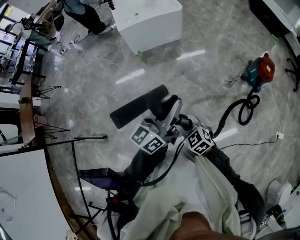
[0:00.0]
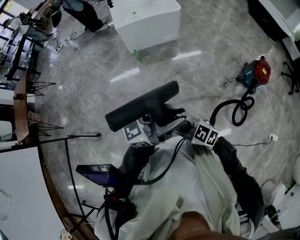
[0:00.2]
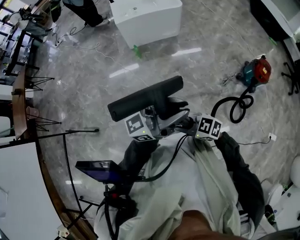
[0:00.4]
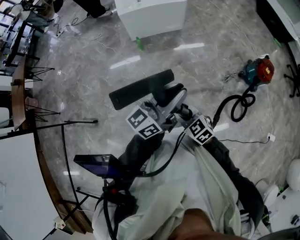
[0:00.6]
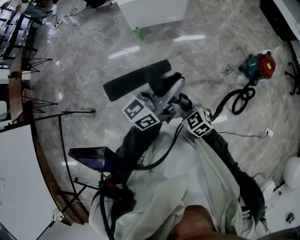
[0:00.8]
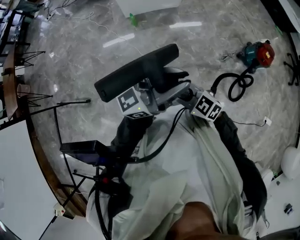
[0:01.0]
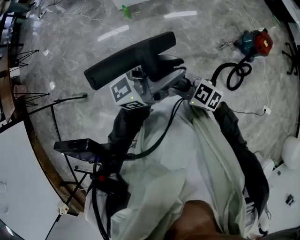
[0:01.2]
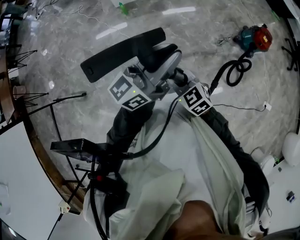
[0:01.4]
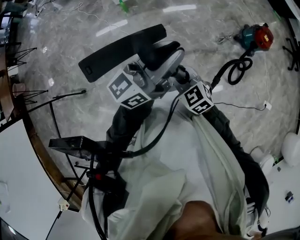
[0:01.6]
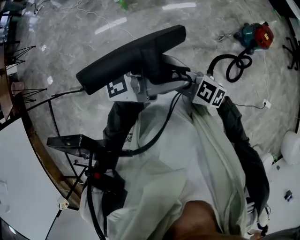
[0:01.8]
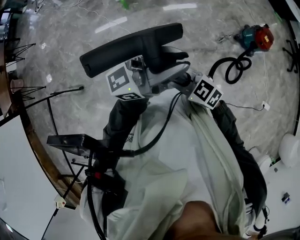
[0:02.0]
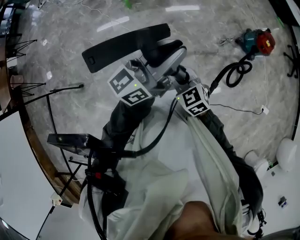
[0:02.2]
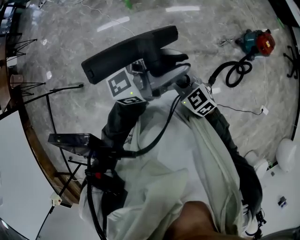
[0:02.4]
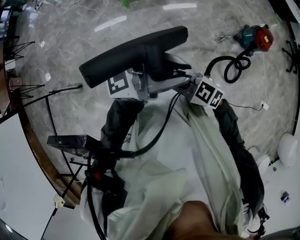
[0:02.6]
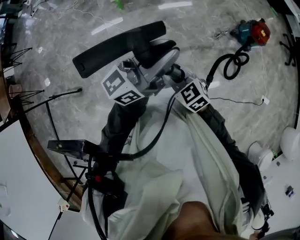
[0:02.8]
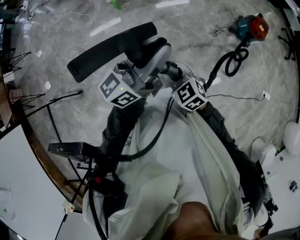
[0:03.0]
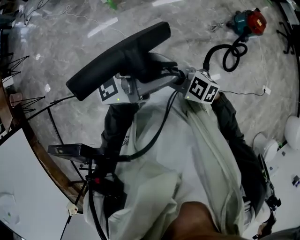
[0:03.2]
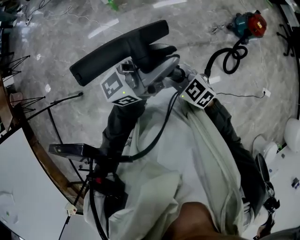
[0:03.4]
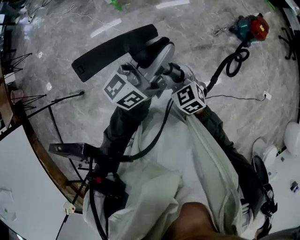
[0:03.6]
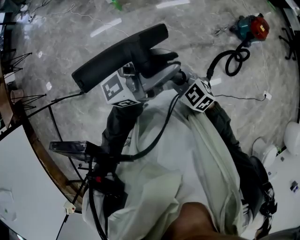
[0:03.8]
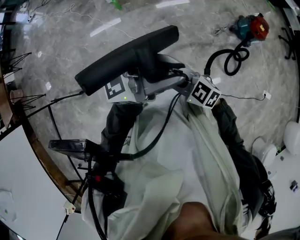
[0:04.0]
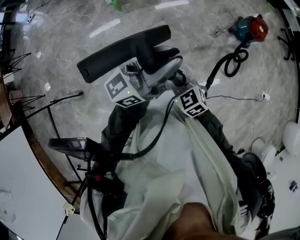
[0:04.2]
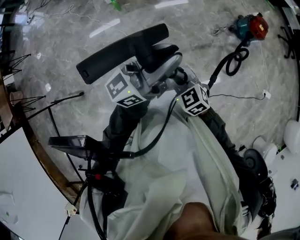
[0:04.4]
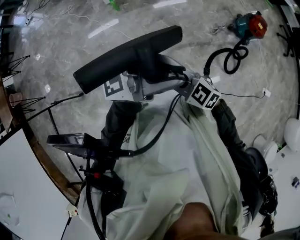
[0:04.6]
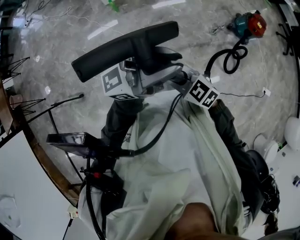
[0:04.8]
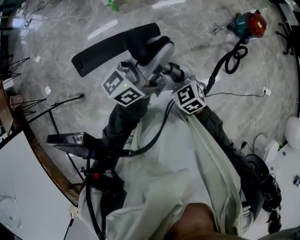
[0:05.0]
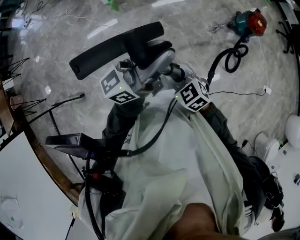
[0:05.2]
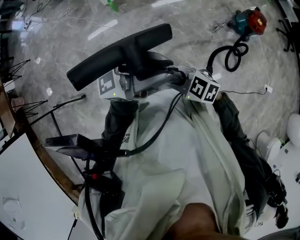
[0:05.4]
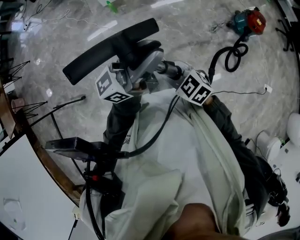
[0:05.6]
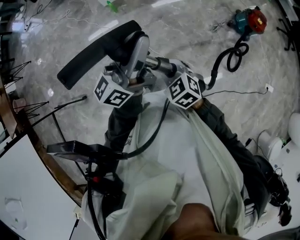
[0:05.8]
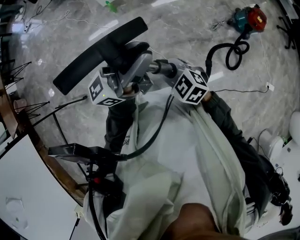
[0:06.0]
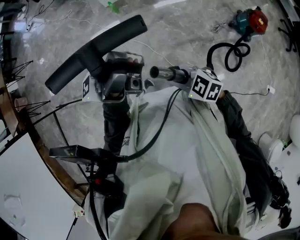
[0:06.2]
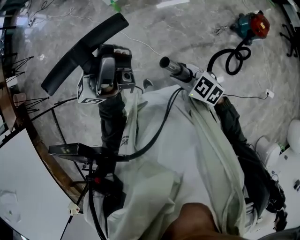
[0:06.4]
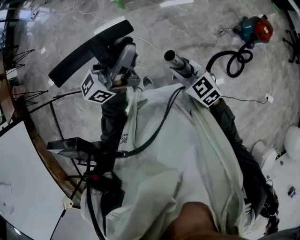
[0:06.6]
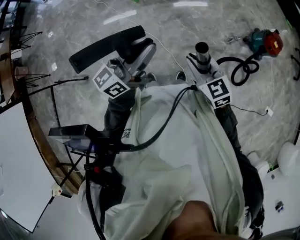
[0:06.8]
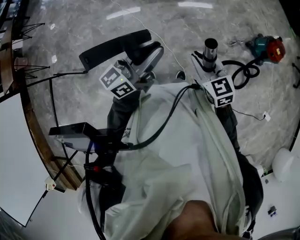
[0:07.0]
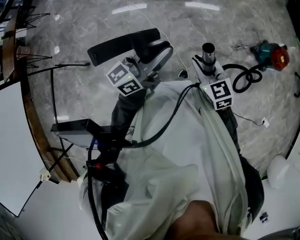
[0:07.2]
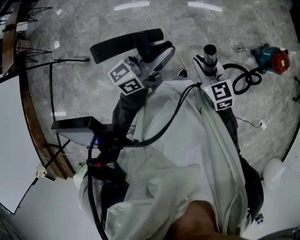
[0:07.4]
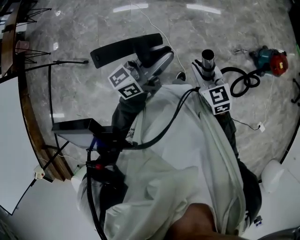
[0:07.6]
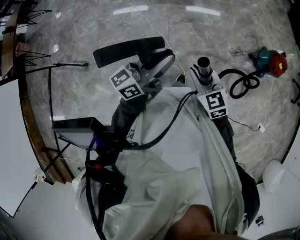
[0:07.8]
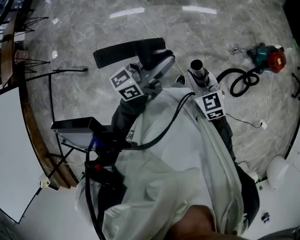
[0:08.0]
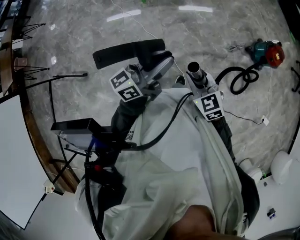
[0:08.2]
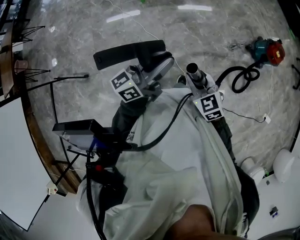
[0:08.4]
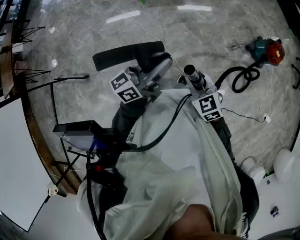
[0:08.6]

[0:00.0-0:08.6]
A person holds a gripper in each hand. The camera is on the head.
0:04.4 to 0:05.8: The left gripper changes place by approximately 10 cm.
0:05.8 to 0:07.2: The right gripper shifts by roughly 10 cm; the left gripper goes approximately 10 cm downward.
0:07.2 to 0:08.6: The right gripper ends up some 5 cm from where it was.

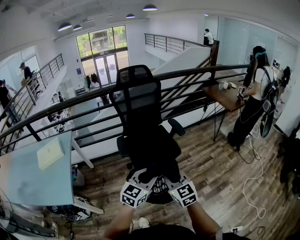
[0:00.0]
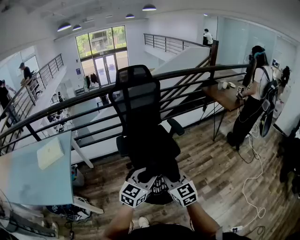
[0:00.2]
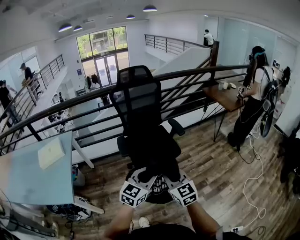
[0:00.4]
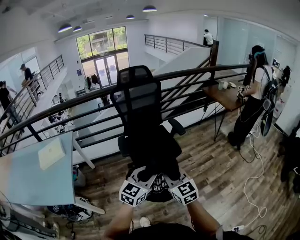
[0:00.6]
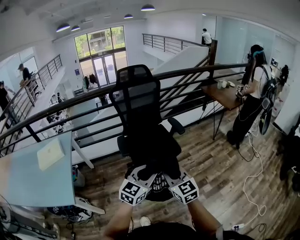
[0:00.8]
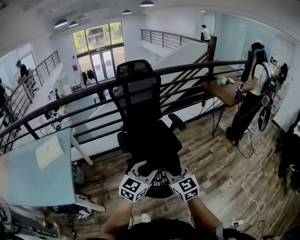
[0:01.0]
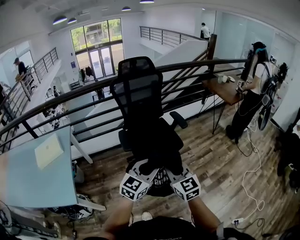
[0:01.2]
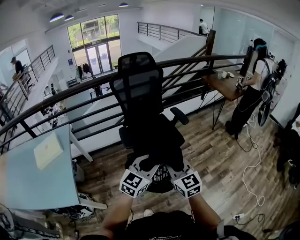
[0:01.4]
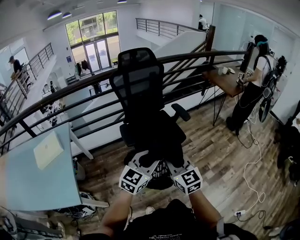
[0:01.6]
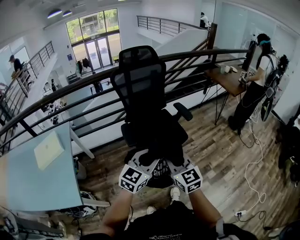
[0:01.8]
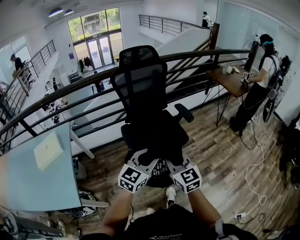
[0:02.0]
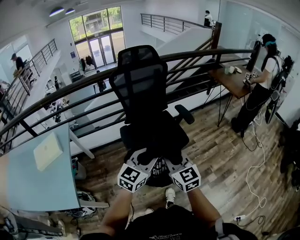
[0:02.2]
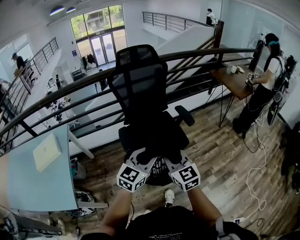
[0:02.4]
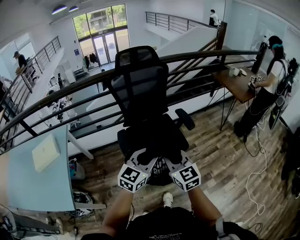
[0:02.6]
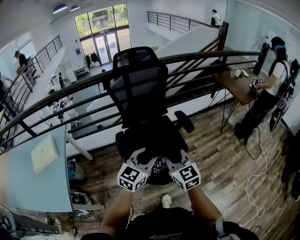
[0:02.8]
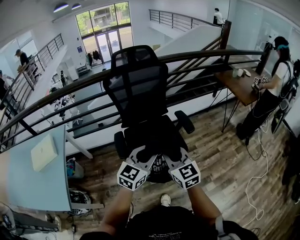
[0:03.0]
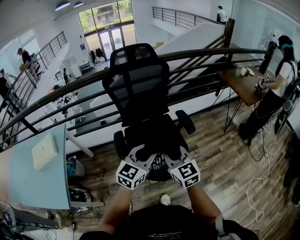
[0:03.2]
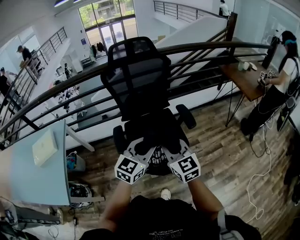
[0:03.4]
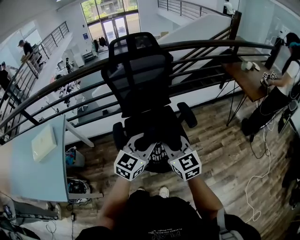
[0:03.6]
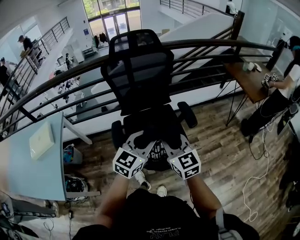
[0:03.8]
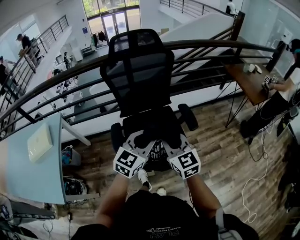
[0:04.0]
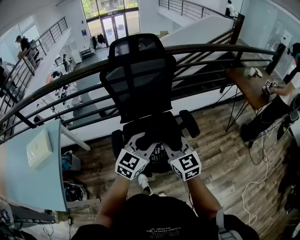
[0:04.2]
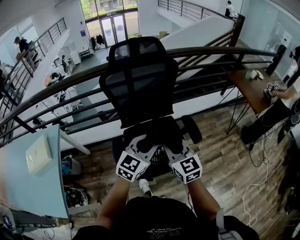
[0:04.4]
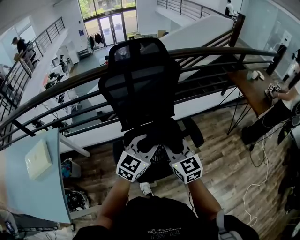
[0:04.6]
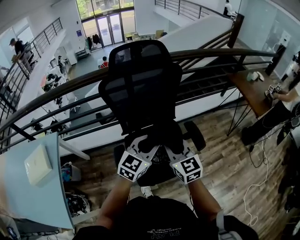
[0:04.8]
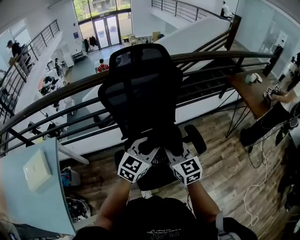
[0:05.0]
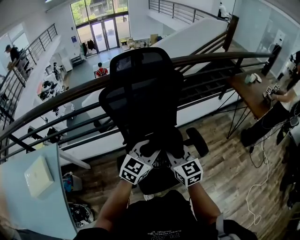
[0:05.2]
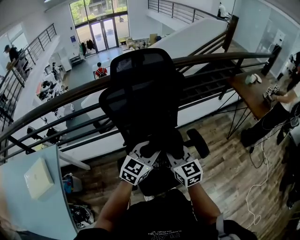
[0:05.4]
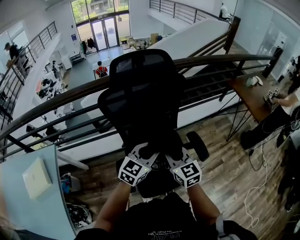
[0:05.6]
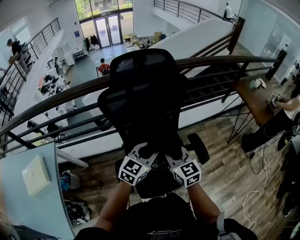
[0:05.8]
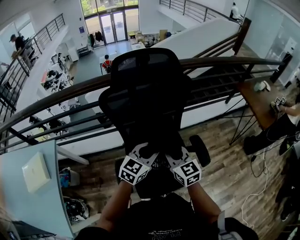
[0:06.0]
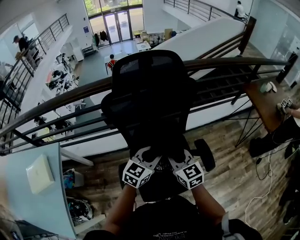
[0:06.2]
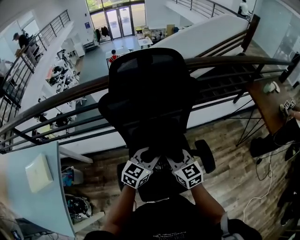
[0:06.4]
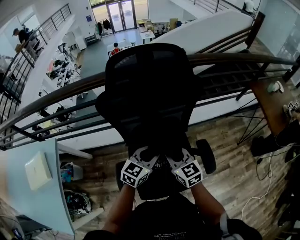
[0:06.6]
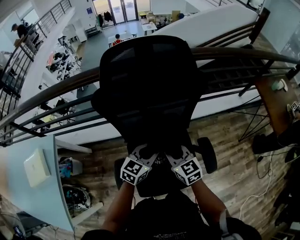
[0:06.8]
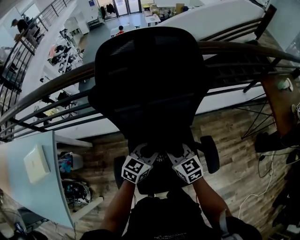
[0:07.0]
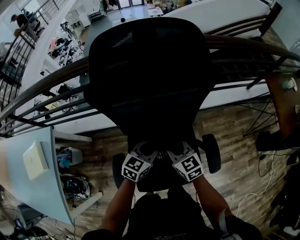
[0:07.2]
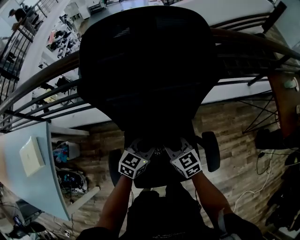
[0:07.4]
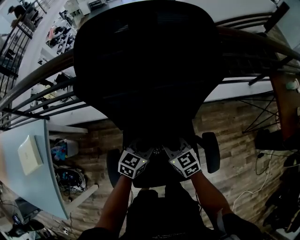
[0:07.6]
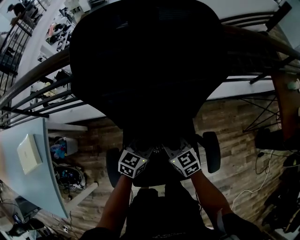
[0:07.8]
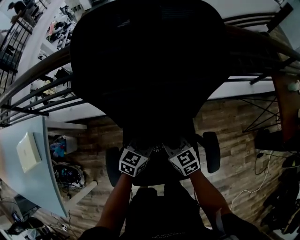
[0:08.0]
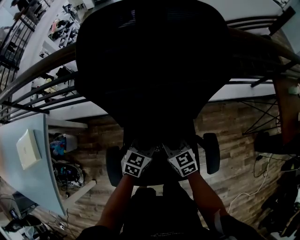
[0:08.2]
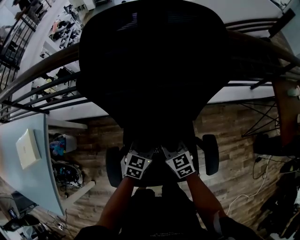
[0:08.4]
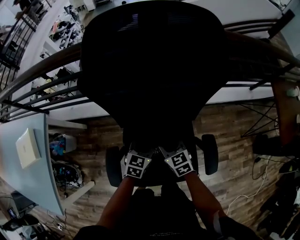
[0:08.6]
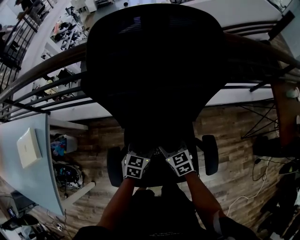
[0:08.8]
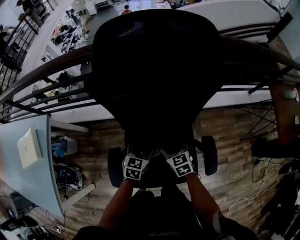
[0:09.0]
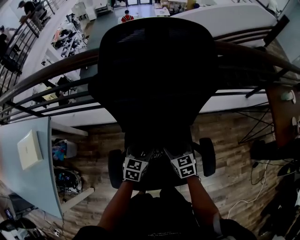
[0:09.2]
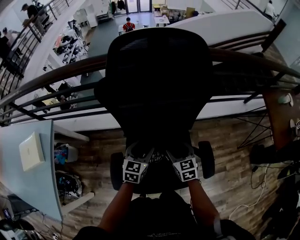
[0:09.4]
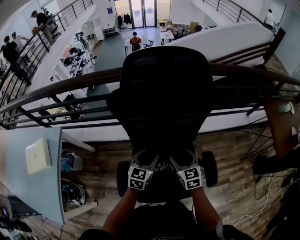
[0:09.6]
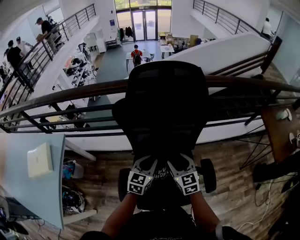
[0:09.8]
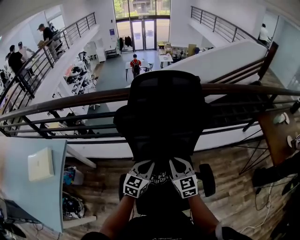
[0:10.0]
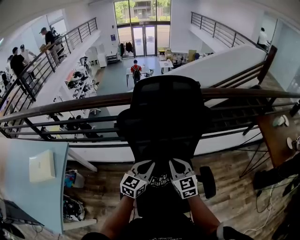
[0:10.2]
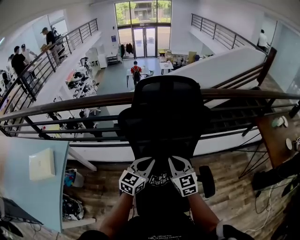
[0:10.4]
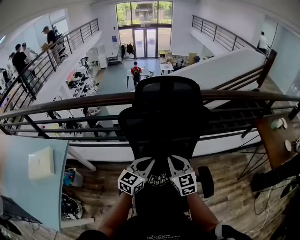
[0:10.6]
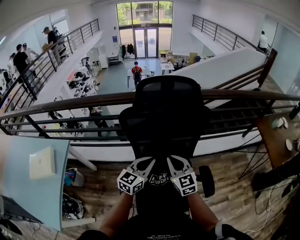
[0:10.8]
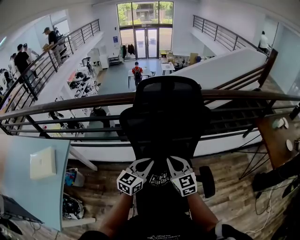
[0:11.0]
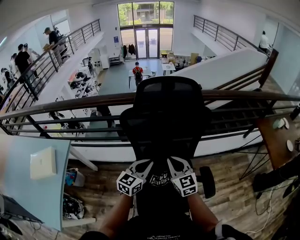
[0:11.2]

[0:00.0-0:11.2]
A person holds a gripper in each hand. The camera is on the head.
0:00.0 to 0:01.6: Both grippers move to the left, roughly 10 cm.
0:01.6 to 0:03.2: The two grippers go roughly 20 cm forward.
0:03.2 to 0:04.8: Both grippers move forward, some 20 cm.
0:04.8 to 0:06.4: The grippers both shift forward and downward by roughly 15 cm.
0:06.4 to 0:08.0: Both grippers move downward and forward, some 20 cm.
0:08.0 to 0:09.6: Both grippers move upward, approximately 5 cm. The left gripper opens up. The right gripper opens its fingers.
0:09.6 to 0:11.2: The right gripper heads upward and to the left, covering about 15 cm, and closes its fingers, while the left gripper goes roughly 10 cm upward, and closes.

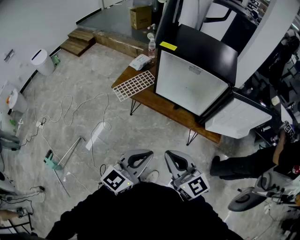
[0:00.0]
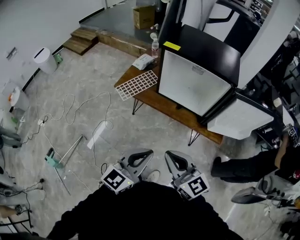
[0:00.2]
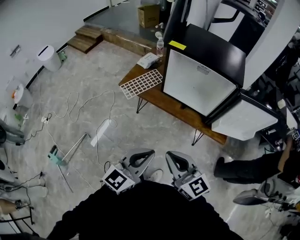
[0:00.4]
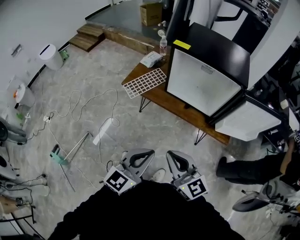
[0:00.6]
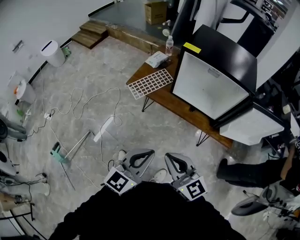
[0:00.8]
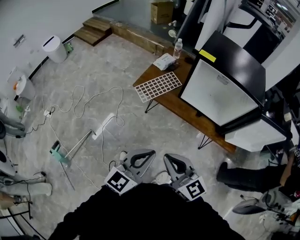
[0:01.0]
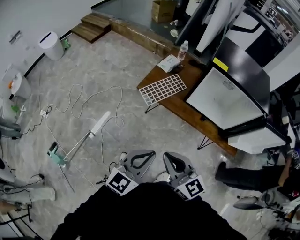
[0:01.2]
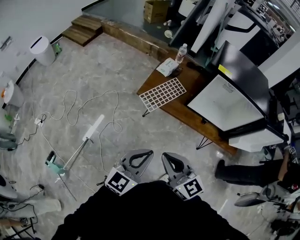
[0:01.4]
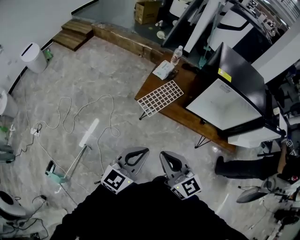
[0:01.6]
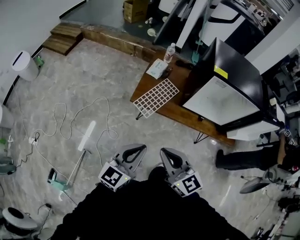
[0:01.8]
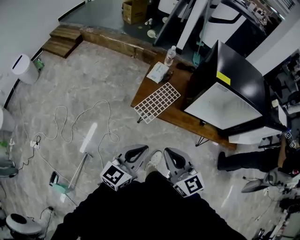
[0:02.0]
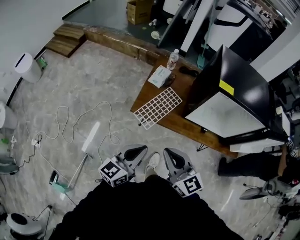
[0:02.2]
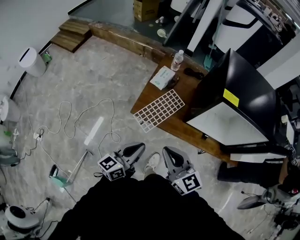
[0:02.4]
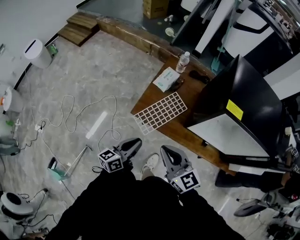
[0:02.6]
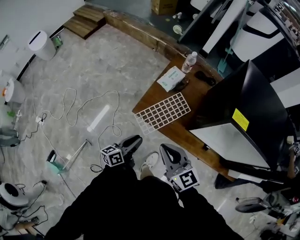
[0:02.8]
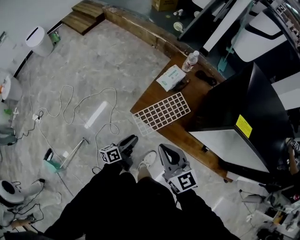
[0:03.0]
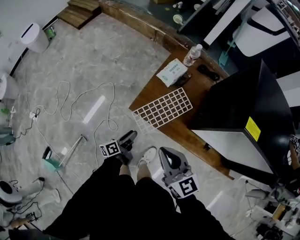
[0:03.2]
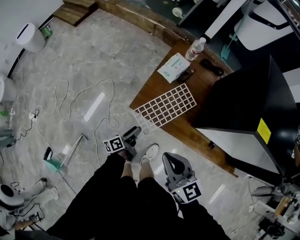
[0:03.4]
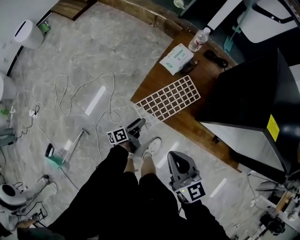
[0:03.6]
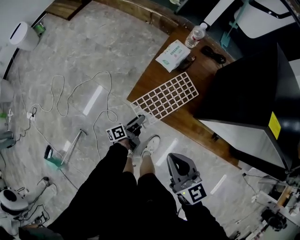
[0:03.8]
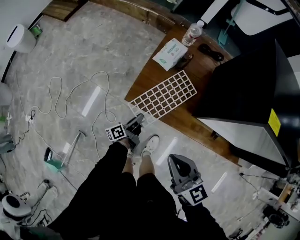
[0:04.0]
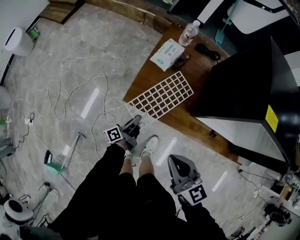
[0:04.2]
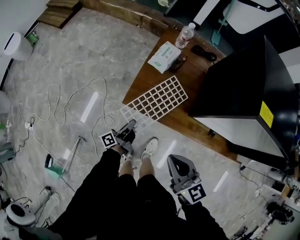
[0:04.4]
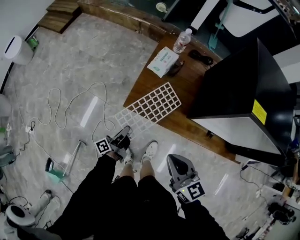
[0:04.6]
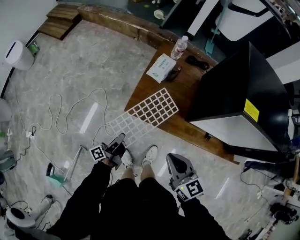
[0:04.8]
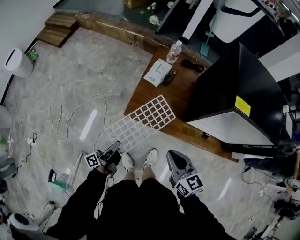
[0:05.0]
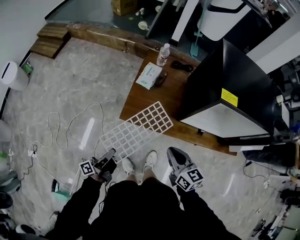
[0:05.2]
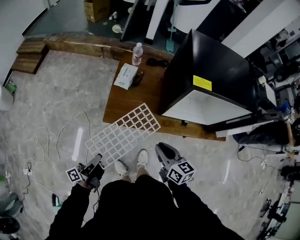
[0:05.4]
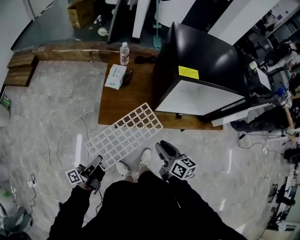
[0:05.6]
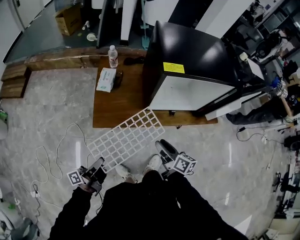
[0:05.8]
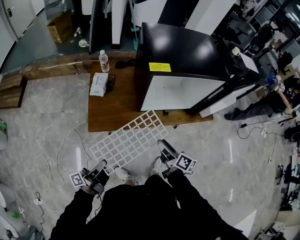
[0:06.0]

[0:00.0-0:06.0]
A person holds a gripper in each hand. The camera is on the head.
0:00.0 to 0:01.6: The grippers both shift to the left and forward by about 35 cm.
0:01.6 to 0:03.0: The left gripper shifts roughly 40 cm downward and forward, rolls counterclockwise, seen from behind, by about 60 degrees, and opens its fingers; the right gripper heads forward, covering approximately 25 cm.
0:03.0 to 0:04.4: The right gripper travels downward by about 5 cm, while the left gripper moves downward and forward, roughly 10 cm, swivels about 20 degrees, and closes its fingers.
0:04.4 to 0:06.0: The right gripper moves roughly 20 cm, rolls clockwise, seen from behind, by roughly 50 degrees, and opens its fingers, while the left gripper moves upward, some 25 cm, and turns by approximately 30 degrees.
